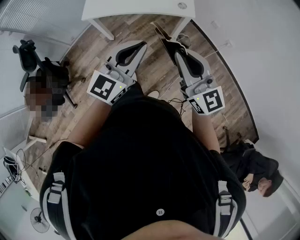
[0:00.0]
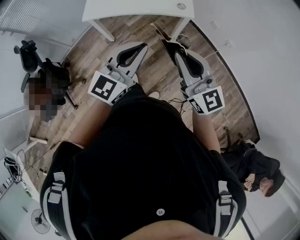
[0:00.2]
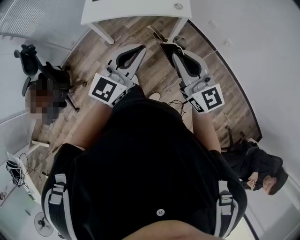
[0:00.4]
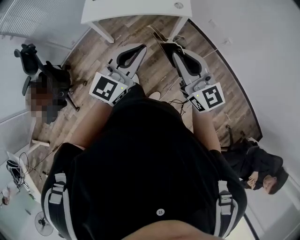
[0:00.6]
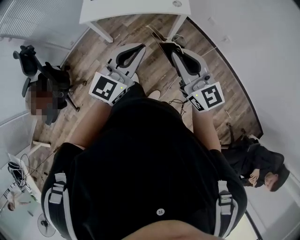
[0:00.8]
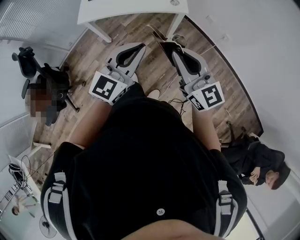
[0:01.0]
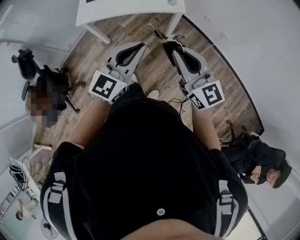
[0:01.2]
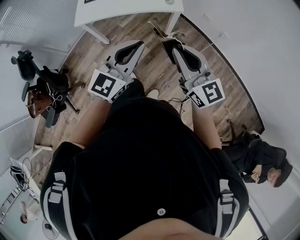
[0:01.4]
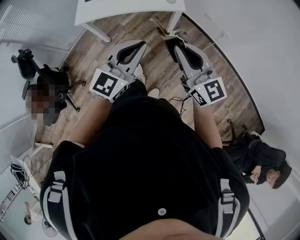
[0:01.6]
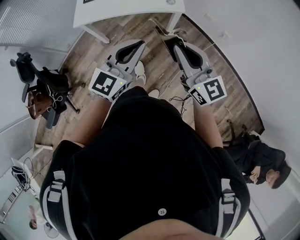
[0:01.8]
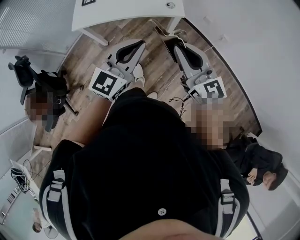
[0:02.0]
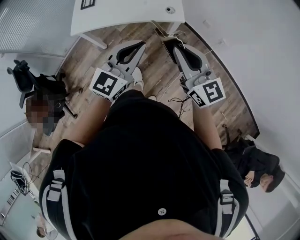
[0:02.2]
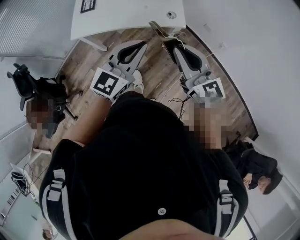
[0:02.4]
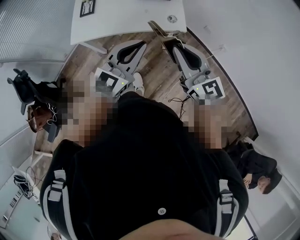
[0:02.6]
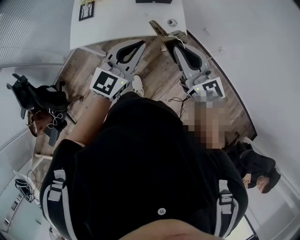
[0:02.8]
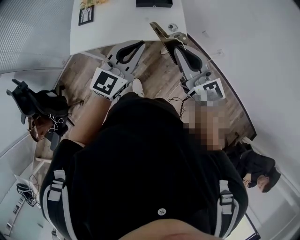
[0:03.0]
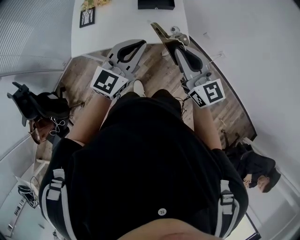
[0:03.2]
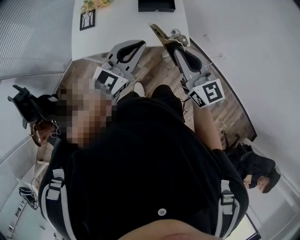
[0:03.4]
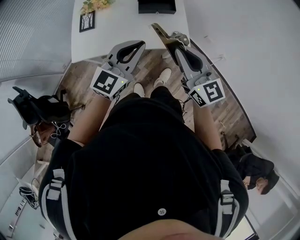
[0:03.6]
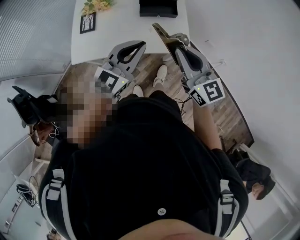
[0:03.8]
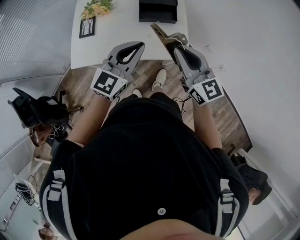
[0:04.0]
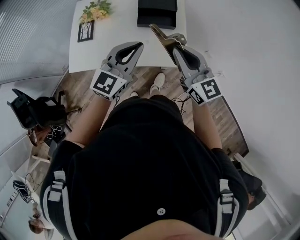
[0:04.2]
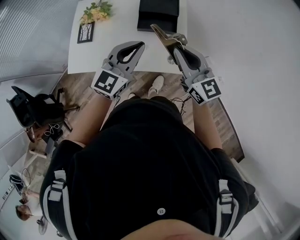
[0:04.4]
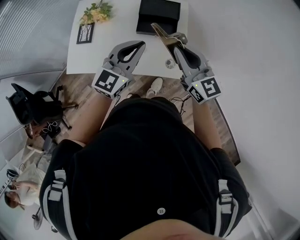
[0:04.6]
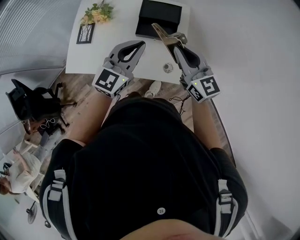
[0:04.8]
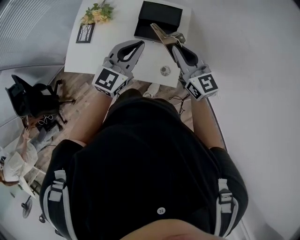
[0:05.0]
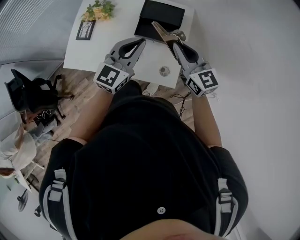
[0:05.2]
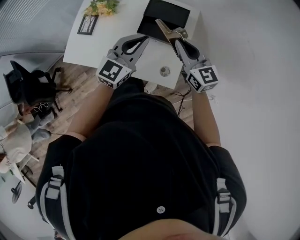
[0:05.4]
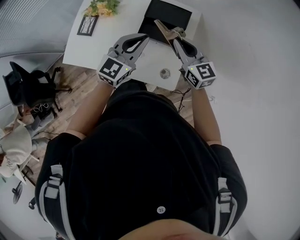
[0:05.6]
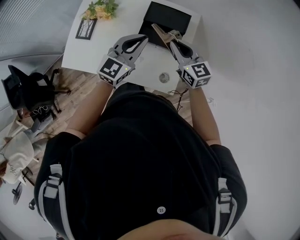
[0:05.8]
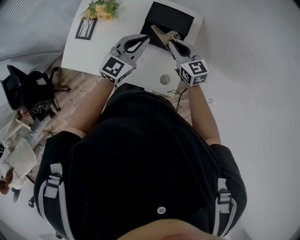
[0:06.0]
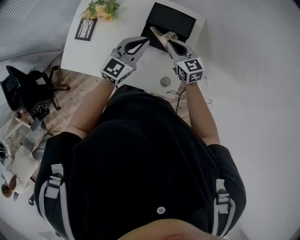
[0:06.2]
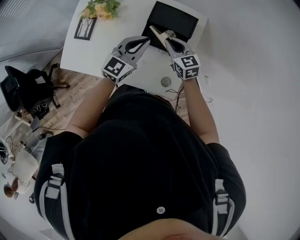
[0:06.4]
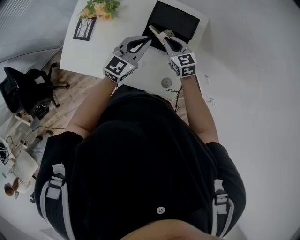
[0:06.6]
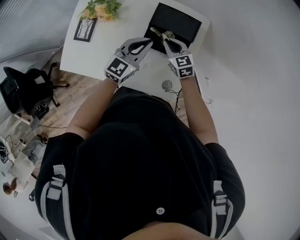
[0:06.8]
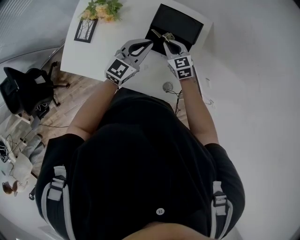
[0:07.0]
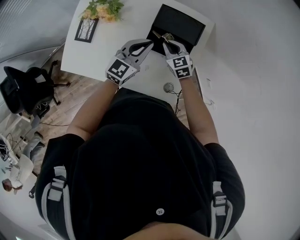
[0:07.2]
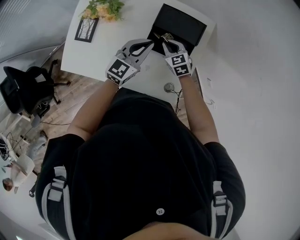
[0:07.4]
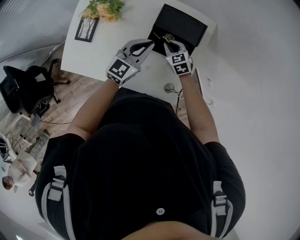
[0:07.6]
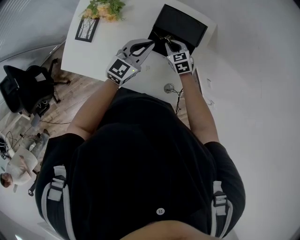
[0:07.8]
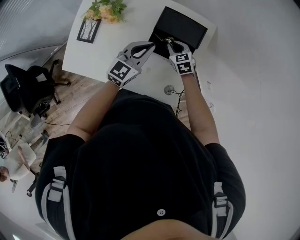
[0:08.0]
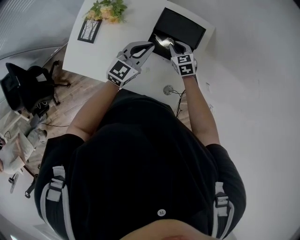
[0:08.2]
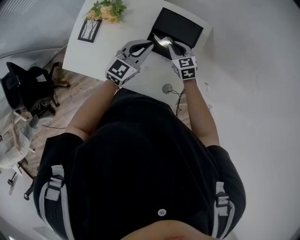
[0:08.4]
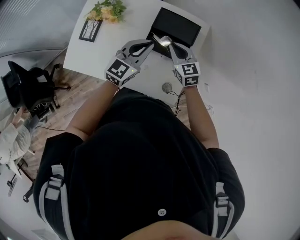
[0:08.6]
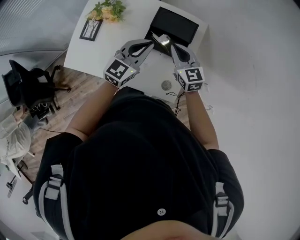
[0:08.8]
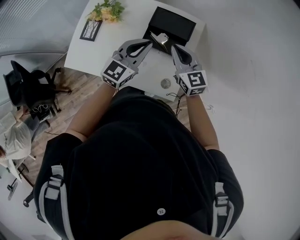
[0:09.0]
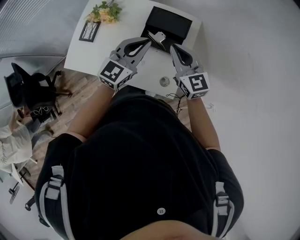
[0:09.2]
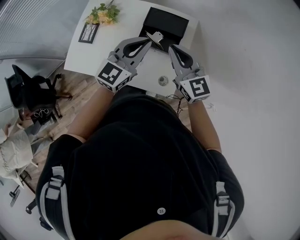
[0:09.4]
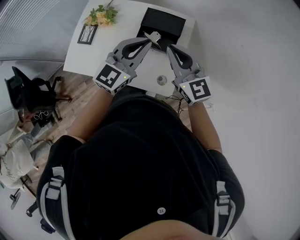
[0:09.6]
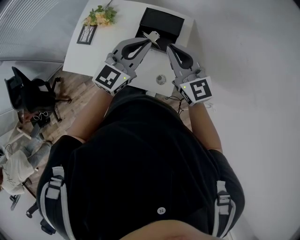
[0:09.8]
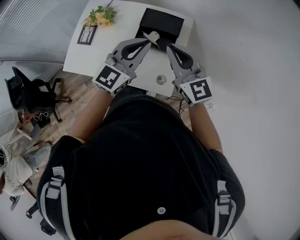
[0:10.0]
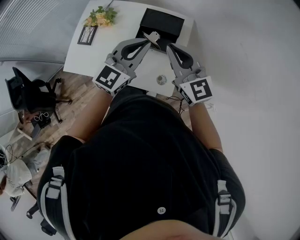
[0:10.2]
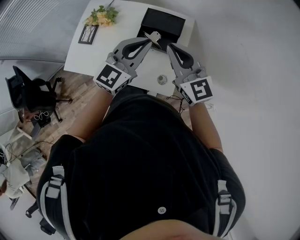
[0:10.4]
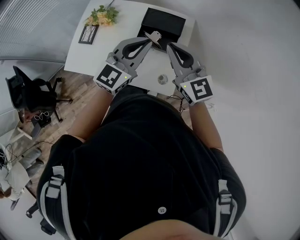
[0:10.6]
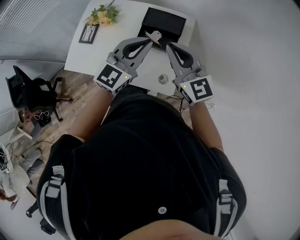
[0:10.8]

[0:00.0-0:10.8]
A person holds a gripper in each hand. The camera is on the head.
0.0 to 1.6 s: The right gripper shifts about 5 cm to the right. Meanwhile the left gripper moves approximately 5 cm.
1.6 to 3.0 s: Both grippers travel together forward, approximately 25 cm.
3.0 to 4.6 s: The grippers both shift forward by about 25 cm.
4.6 to 6.2 s: The left gripper shifts about 20 cm forward and downward. The right gripper is displaced downward and forward by roughly 25 cm, and rotates about 20 degrees.
6.2 to 7.8 s: The left gripper is displaced downward by some 5 cm, while the right gripper is displaced downward by some 15 cm, and changes its angle by roughly 20 degrees.
7.8 to 9.2 s: The left gripper moves upward and backward, about 15 cm. Meanwhile the right gripper is displaced upward by about 30 cm, and points its fingers approximately 40 degrees further upward.
9.2 to 10.8 s: The left gripper is displaced upward by some 5 cm. The right gripper heads upward and backward, covering about 10 cm.

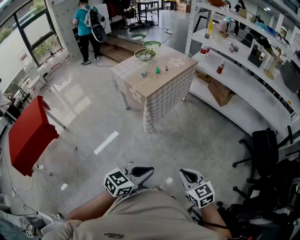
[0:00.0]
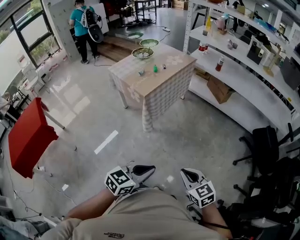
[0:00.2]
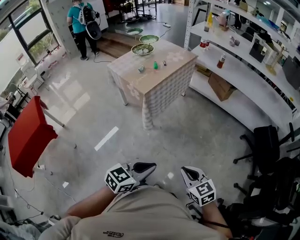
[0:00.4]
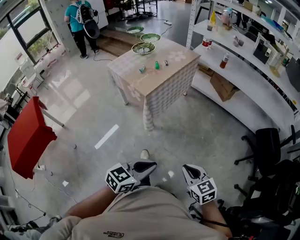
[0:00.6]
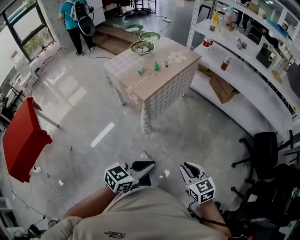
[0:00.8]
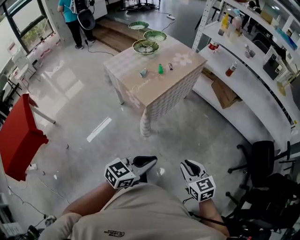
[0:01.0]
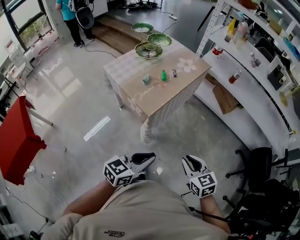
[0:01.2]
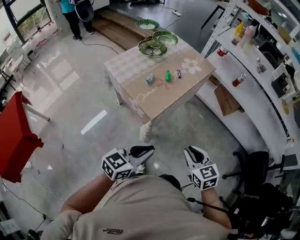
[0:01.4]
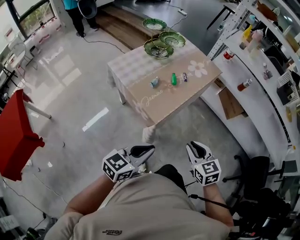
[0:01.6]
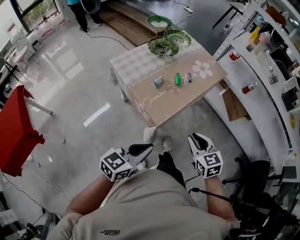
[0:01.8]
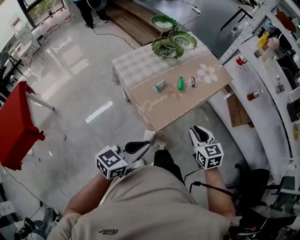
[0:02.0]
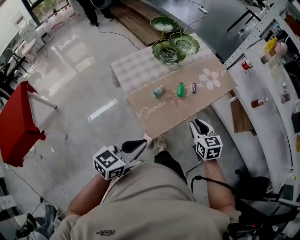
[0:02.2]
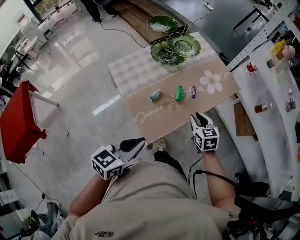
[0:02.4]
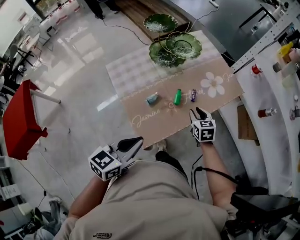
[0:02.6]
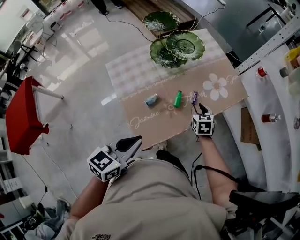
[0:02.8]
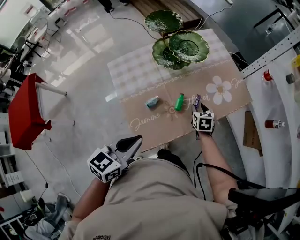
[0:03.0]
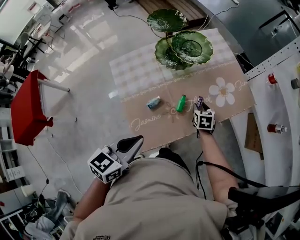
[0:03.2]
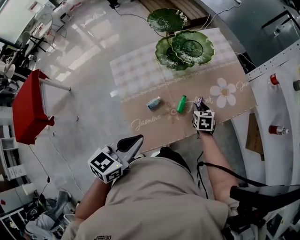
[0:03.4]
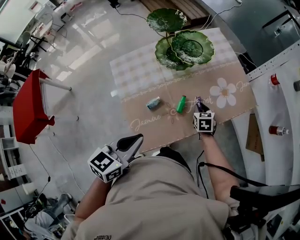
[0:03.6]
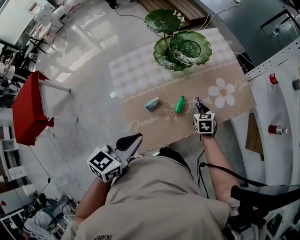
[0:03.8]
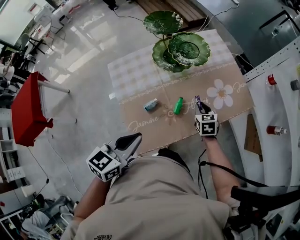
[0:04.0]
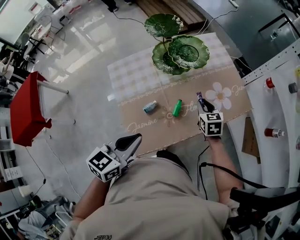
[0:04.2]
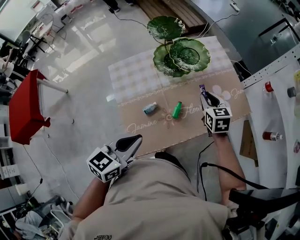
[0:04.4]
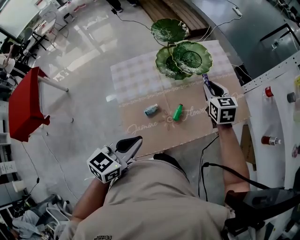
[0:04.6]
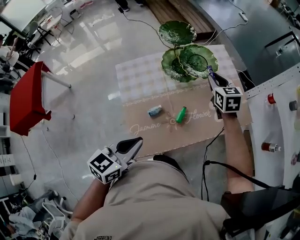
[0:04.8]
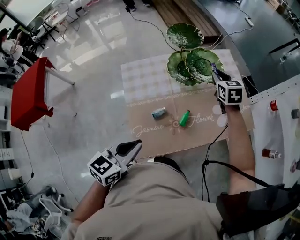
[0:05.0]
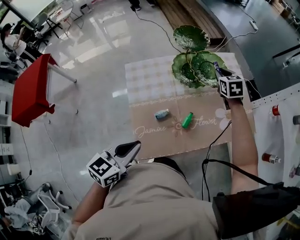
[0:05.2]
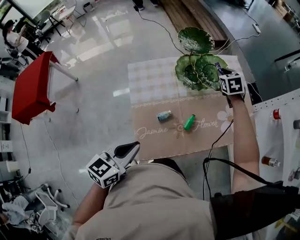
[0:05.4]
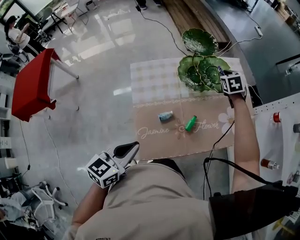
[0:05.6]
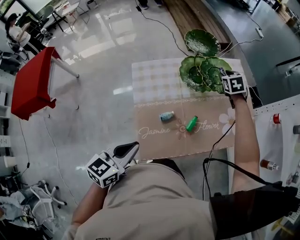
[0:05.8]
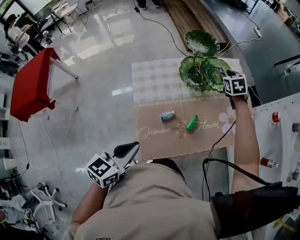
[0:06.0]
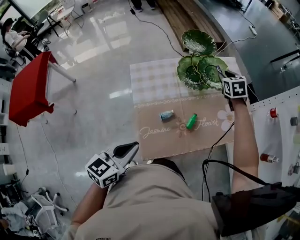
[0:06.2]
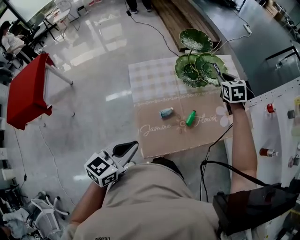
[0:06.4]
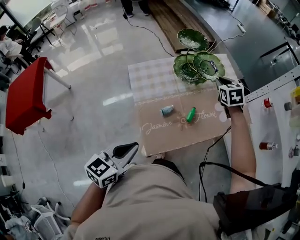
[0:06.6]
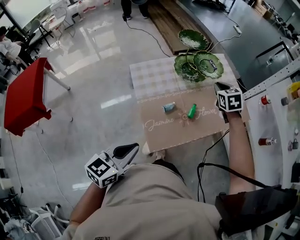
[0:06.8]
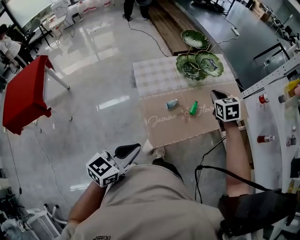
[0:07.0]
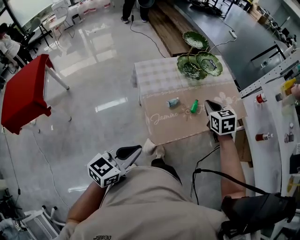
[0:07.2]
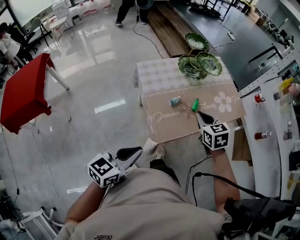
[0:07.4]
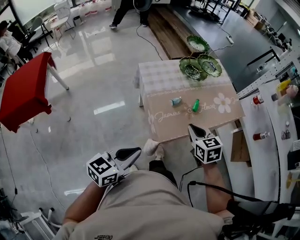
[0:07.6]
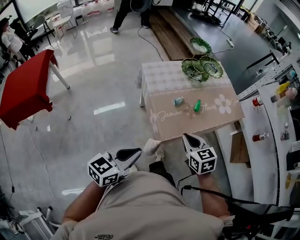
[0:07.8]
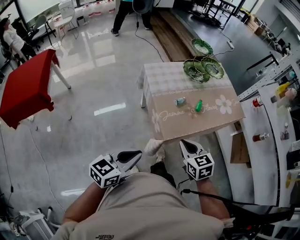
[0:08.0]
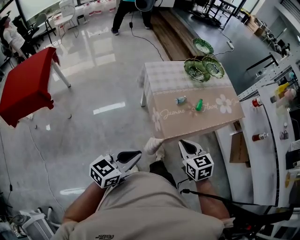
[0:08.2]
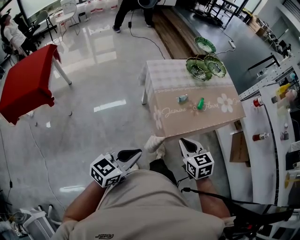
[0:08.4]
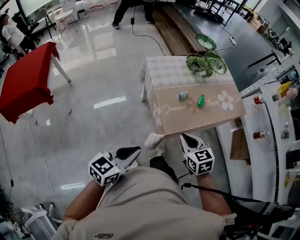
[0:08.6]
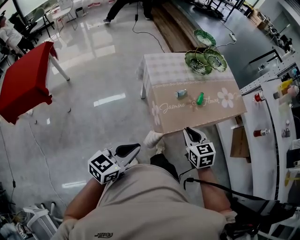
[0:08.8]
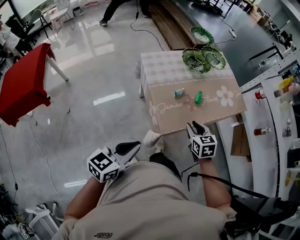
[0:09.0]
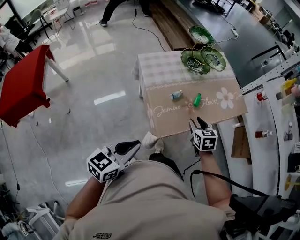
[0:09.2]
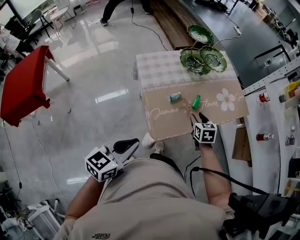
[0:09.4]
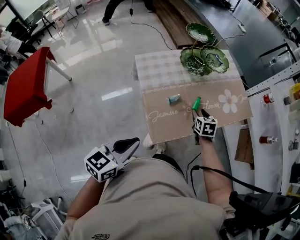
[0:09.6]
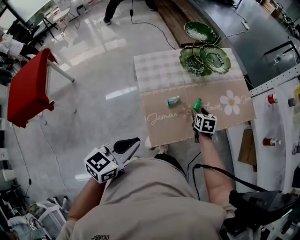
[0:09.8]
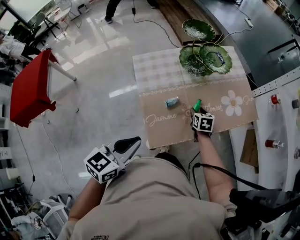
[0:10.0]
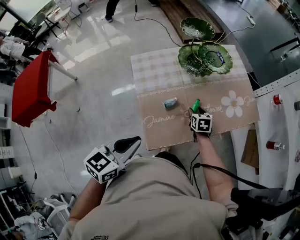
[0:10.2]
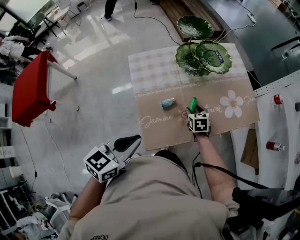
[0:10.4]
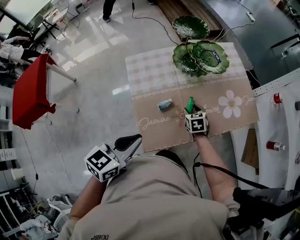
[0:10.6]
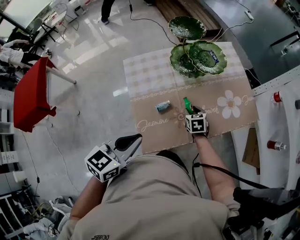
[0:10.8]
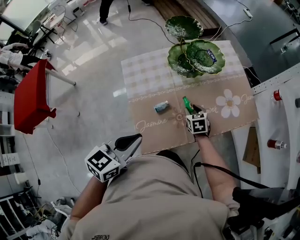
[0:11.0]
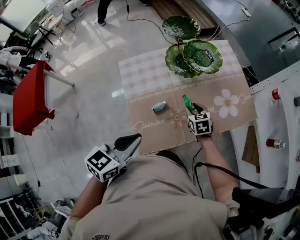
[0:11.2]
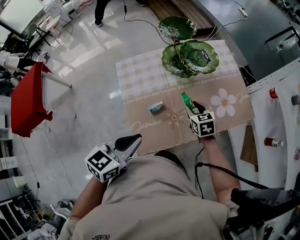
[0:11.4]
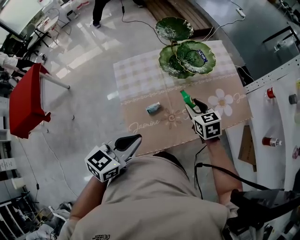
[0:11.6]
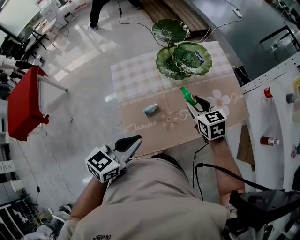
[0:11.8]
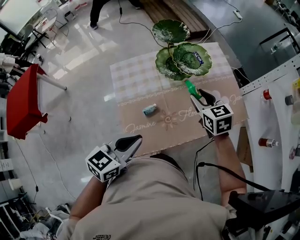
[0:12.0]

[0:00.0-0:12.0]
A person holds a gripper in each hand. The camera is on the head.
0.0 to 1.6 s: The two grippers travel together, forward and to the left, approximately 50 cm.
1.6 to 3.0 s: The left gripper travels forward by roughly 30 cm, and rotates approximately 30 degrees. The right gripper travels forward and downward by roughly 50 cm.
3.0 to 4.4 s: The right gripper goes about 15 cm upward and forward.
4.4 to 6.0 s: The right gripper travels forward by about 20 cm, and turns by about 20 degrees, while the left gripper heads to the left, covering some 10 cm.
6.0 to 7.6 s: The right gripper travels backward by approximately 50 cm, and closes up. Meanwhile the left gripper is displaced backward by approximately 20 cm.
7.6 to 9.0 s: The right gripper shifts approximately 5 cm downward, reaches roughly 10 cm backward, then returns, and opens its fingers.
9.0 to 10.4 s: The left gripper goes approximately 20 cm forward and to the right. Meanwhile the right gripper moves forward and downward, roughly 30 cm, and opens.
10.4 to 12.0 s: The right gripper moves upward, roughly 20 cm. The left gripper shifts some 10 cm to the right and forward.

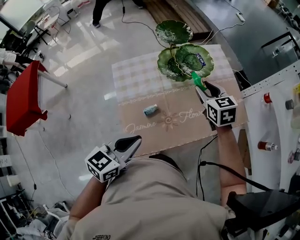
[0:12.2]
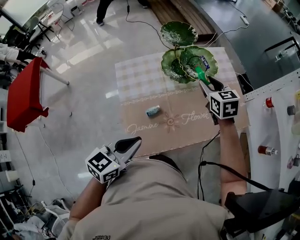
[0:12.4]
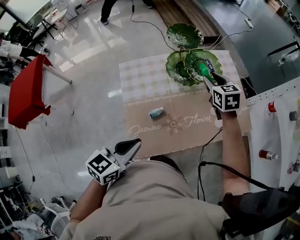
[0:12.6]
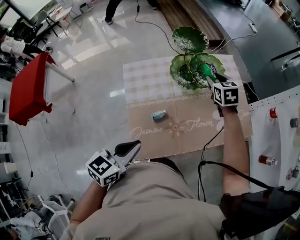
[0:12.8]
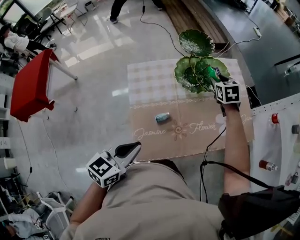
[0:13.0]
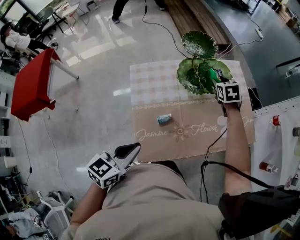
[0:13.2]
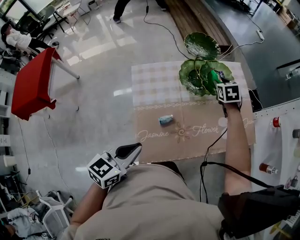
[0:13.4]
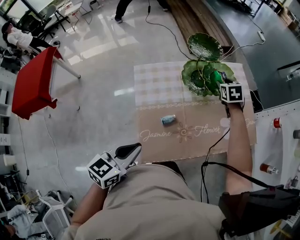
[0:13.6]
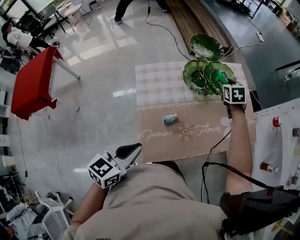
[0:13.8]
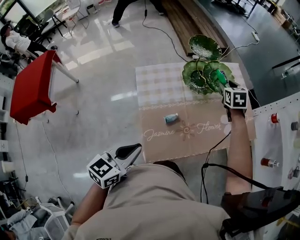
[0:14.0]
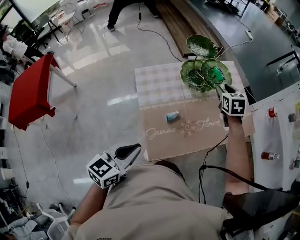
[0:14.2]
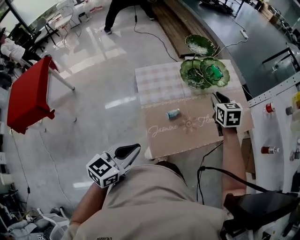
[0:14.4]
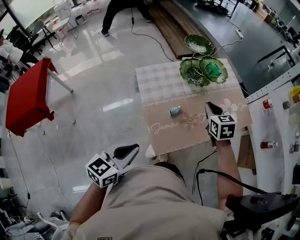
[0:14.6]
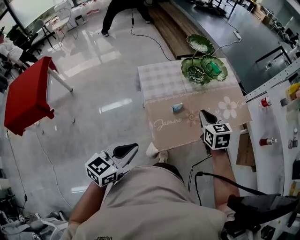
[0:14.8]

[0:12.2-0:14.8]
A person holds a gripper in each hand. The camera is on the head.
12.2 to 13.4 s: The right gripper is displaced forward and downward by some 15 cm. Meanwhile the left gripper is displaced to the left by some 5 cm.
13.4 to 14.8 s: The left gripper is displaced backward and to the left by roughly 15 cm; the right gripper moves backward, some 35 cm, and closes.
